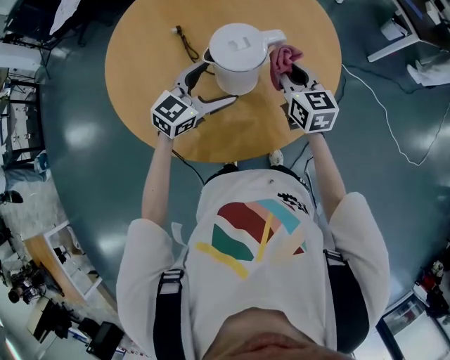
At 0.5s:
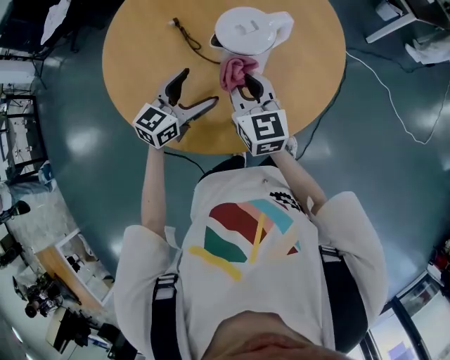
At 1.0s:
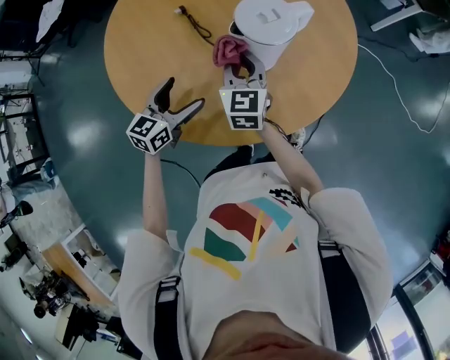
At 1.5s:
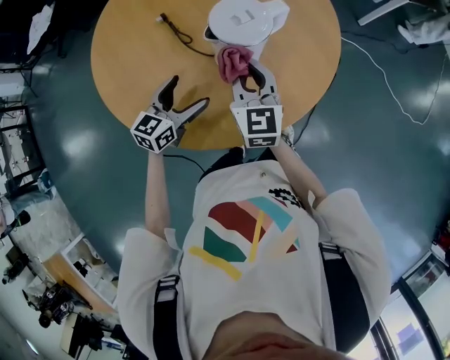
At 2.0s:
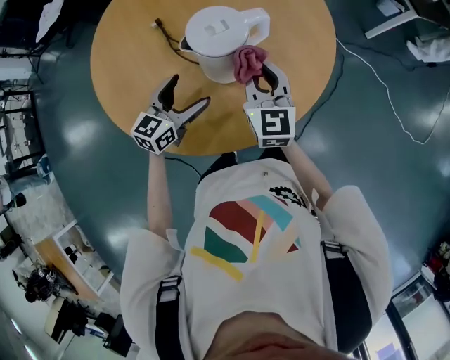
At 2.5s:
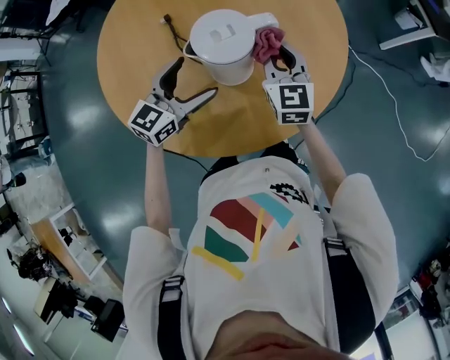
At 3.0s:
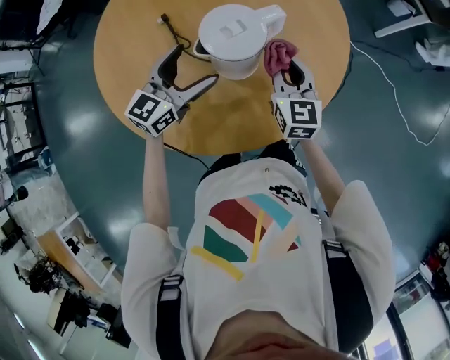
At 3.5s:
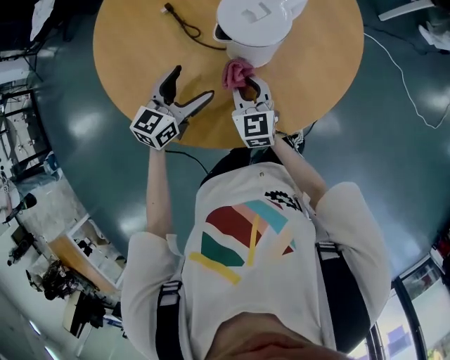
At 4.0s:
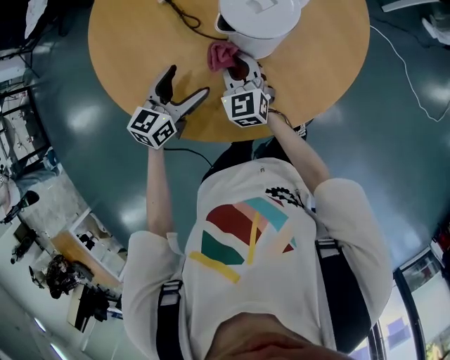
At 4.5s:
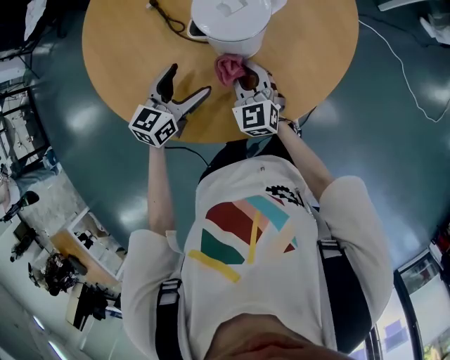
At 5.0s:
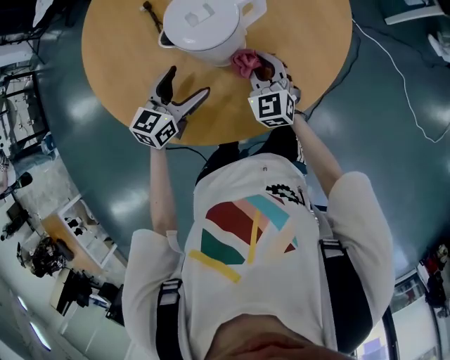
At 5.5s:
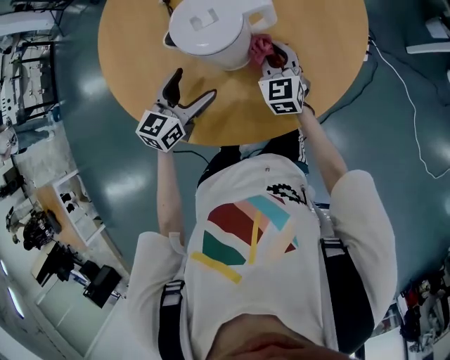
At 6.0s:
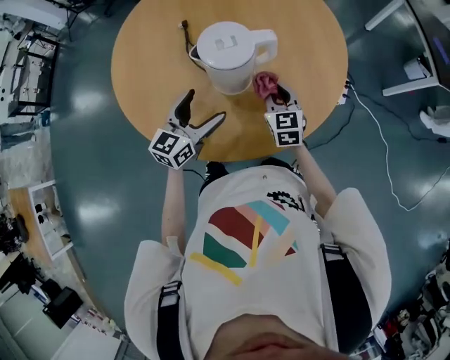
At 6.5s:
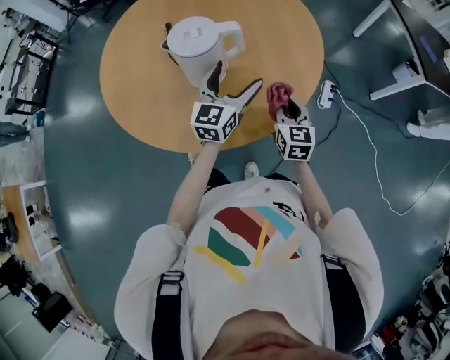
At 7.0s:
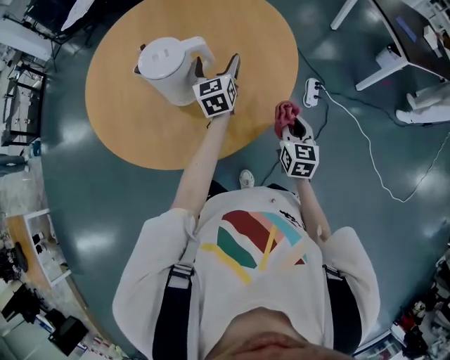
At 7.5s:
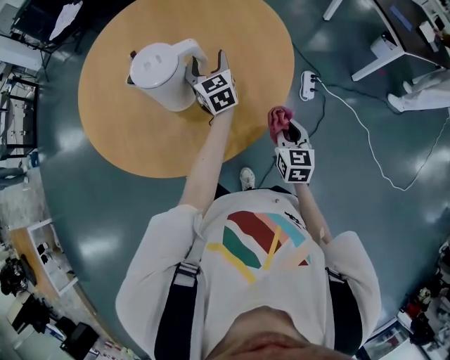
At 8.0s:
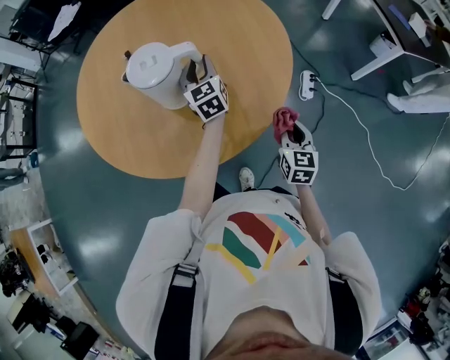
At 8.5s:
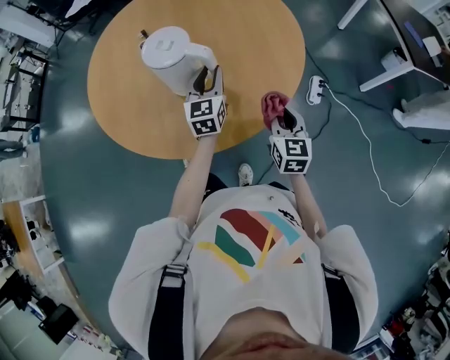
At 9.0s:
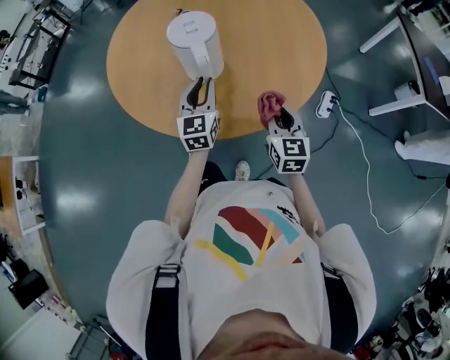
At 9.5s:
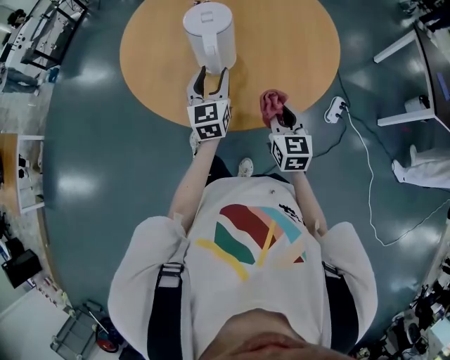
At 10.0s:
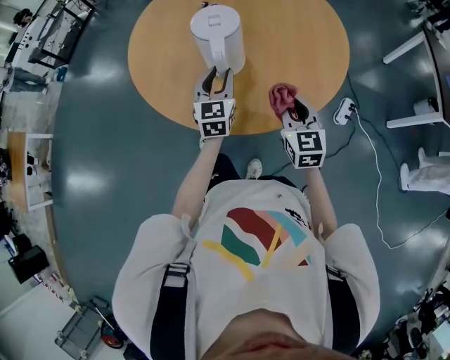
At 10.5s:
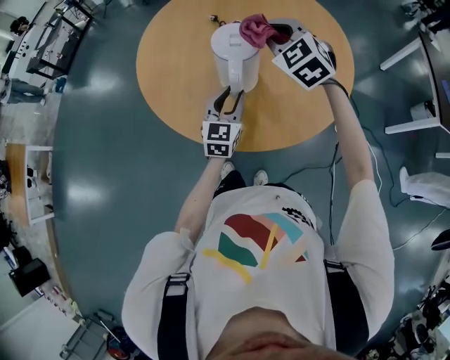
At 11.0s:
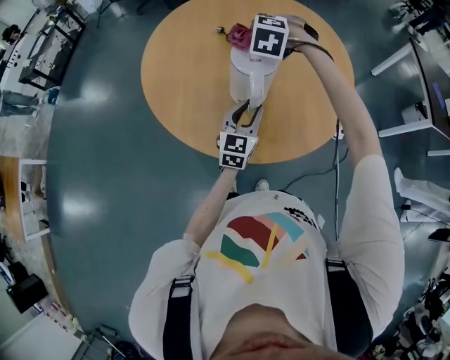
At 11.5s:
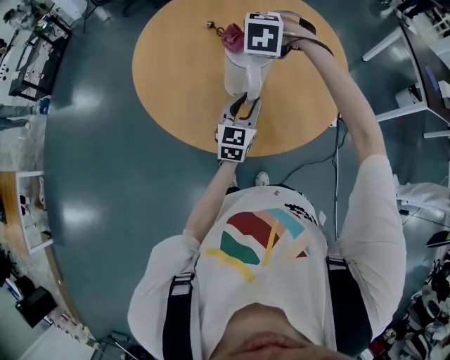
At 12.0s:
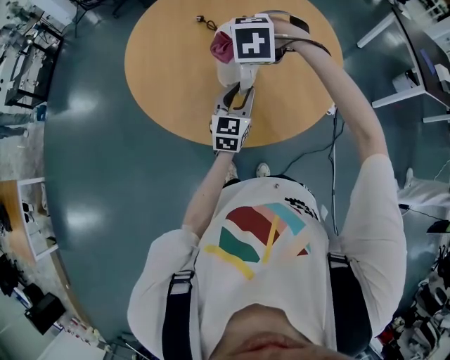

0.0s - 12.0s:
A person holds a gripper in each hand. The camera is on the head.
0.0s - 2.0s: The right gripper shifts roughly 5 cm backward, and reaches approximately 15 cm to the left, then returns, while the left gripper travels to the left and back again, approximately 15 cm each way.
2.0s - 4.0s: The left gripper is displaced to the left by some 10 cm, while the right gripper moves to the left and downward, about 20 cm.
4.0s - 6.0s: Both grippers travel together to the right, roughly 20 cm. The left gripper changes its angle by about 20 degrees.
6.0s - 8.0s: The right gripper goes some 25 cm to the right and backward, and swivels some 20 degrees; the left gripper travels to the right and forward by approximately 25 cm, rotates some 40 degrees, and closes.
8.0s - 10.0s: The right gripper heads to the left and upward, covering roughly 15 cm, and turns by approximately 30 degrees. Meanwhile the left gripper heads backward and to the left, covering some 20 cm.
10.0s - 12.0s: The left gripper changes its angle by some 20 degrees. Meanwhile the right gripper shifts about 30 cm to the left, forward and upward, and points its fingers about 50 degrees further downward.

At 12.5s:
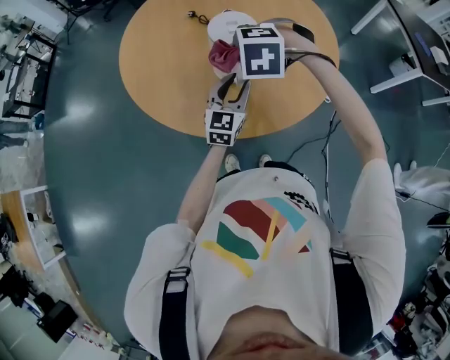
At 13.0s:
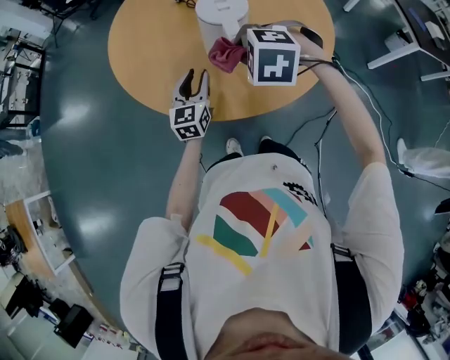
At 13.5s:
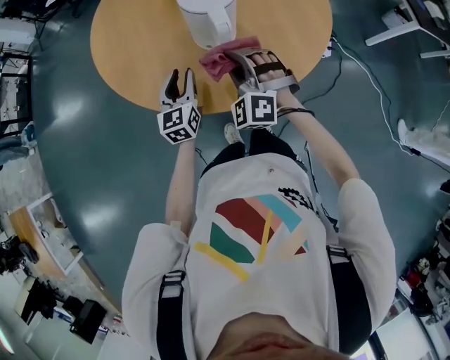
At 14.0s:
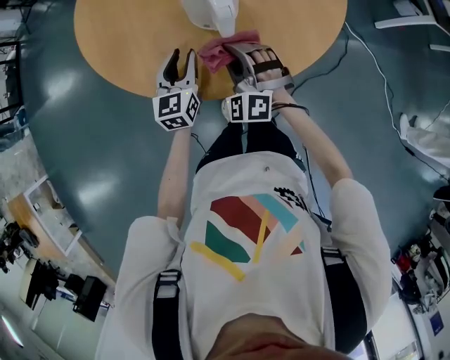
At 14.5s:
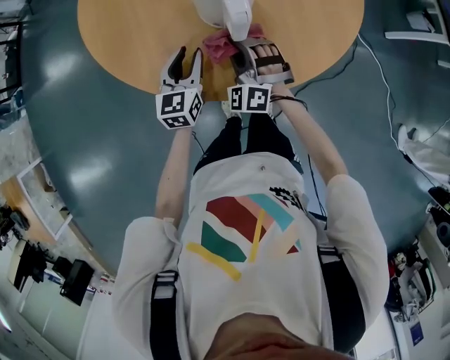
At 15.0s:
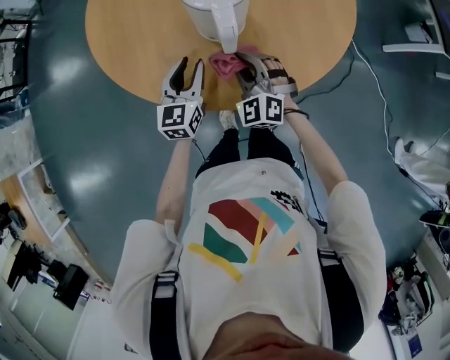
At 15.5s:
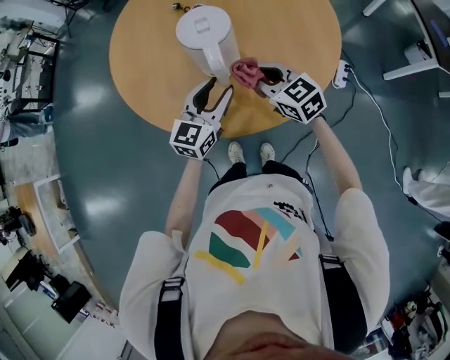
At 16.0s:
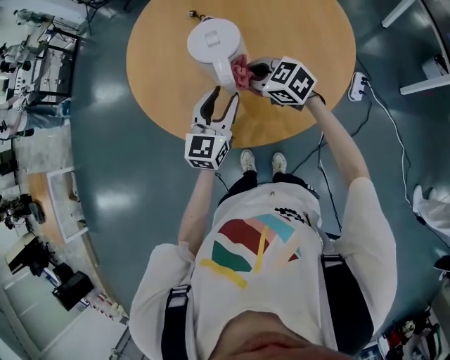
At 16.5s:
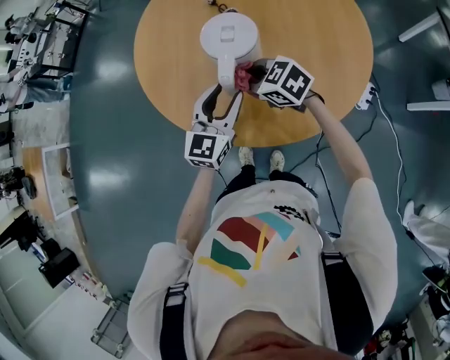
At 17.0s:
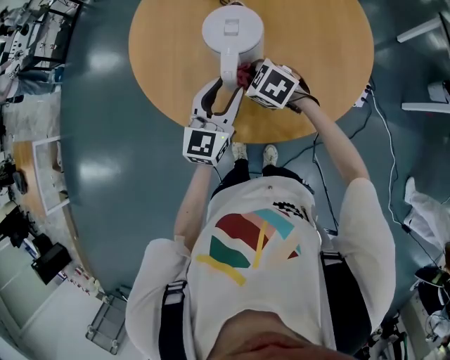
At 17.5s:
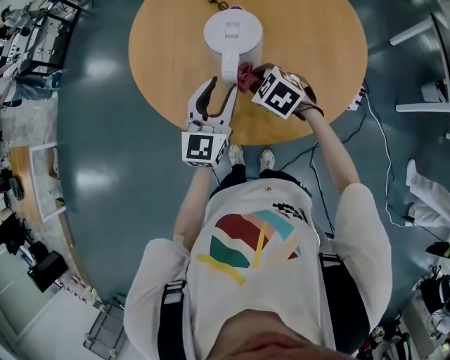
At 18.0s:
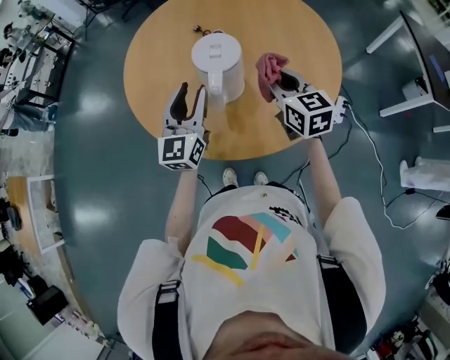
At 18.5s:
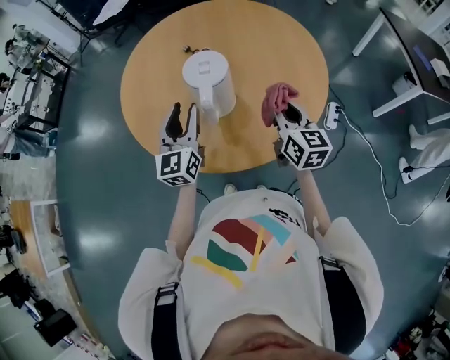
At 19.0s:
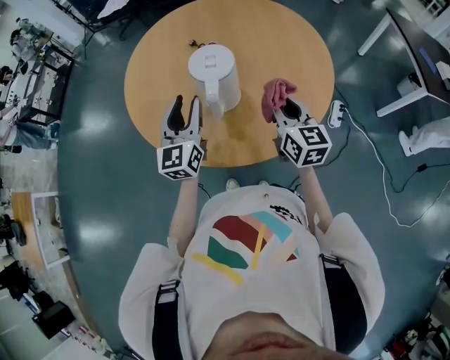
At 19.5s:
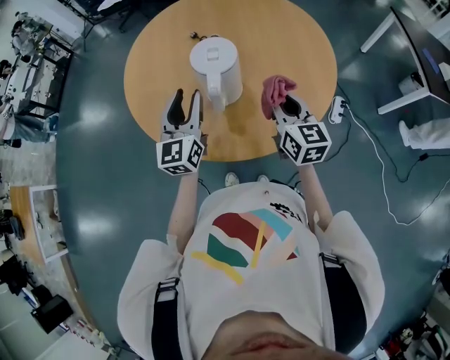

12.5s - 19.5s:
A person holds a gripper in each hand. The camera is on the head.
12.5s - 14.5s: The right gripper is displaced downward by some 20 cm, and points its fingers approximately 40 degrees further upward. The left gripper shifts about 15 cm downward and to the left.
14.5s - 16.0s: The left gripper moves some 20 cm, while the right gripper shifts about 10 cm upward, and swivels some 70 degrees.
16.0s - 17.5s: The left gripper moves approximately 5 cm. Meanwhile the right gripper shifts by roughly 5 cm, and rotates about 30 degrees.
17.5s - 19.5s: The right gripper shifts some 20 cm upward, to the right and backward, and angles its fingers upward, by some 40 degrees. The left gripper moves upward, roughly 5 cm.

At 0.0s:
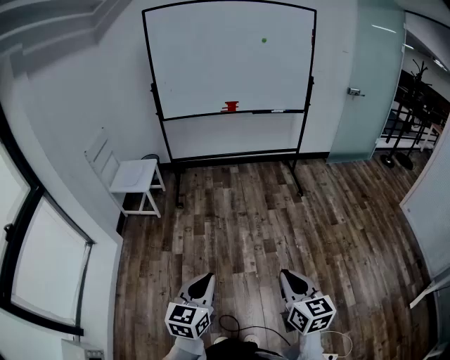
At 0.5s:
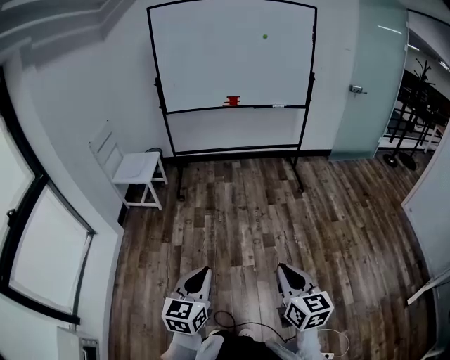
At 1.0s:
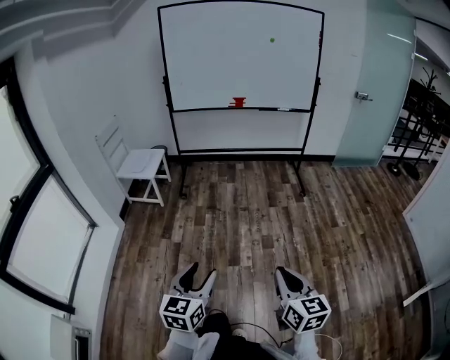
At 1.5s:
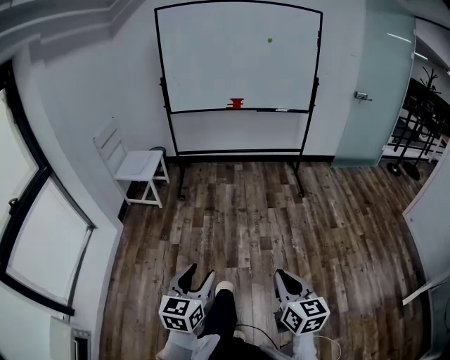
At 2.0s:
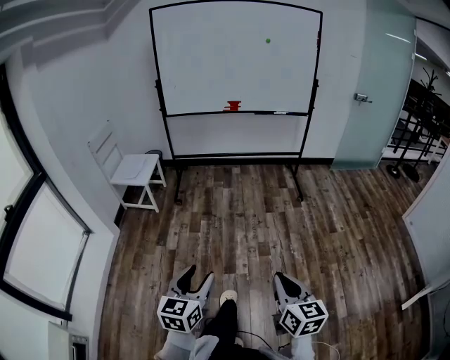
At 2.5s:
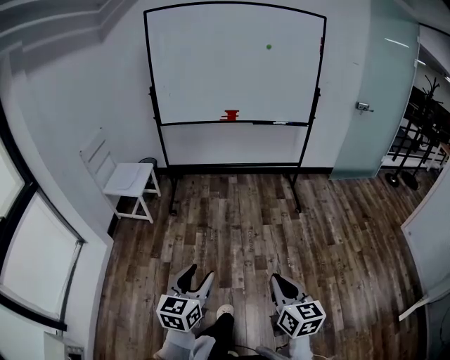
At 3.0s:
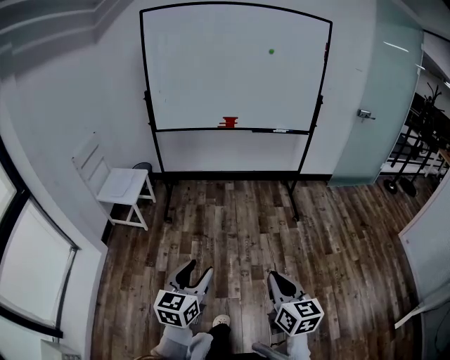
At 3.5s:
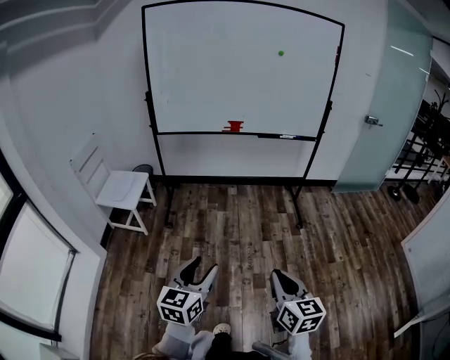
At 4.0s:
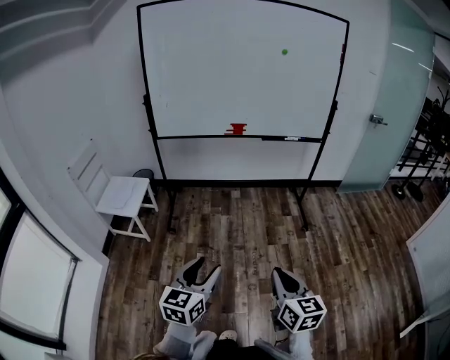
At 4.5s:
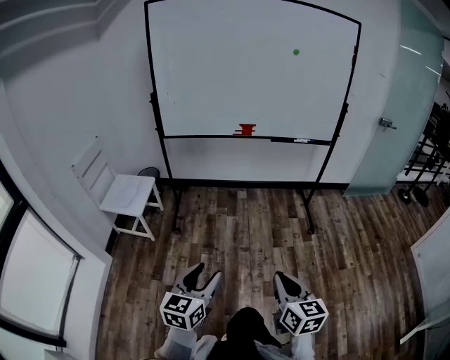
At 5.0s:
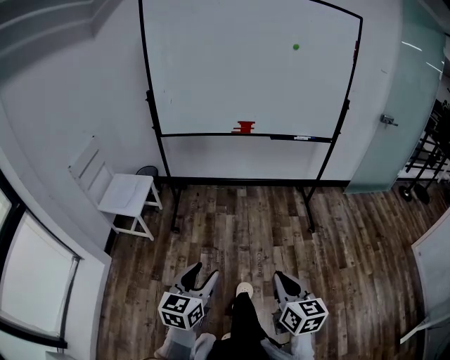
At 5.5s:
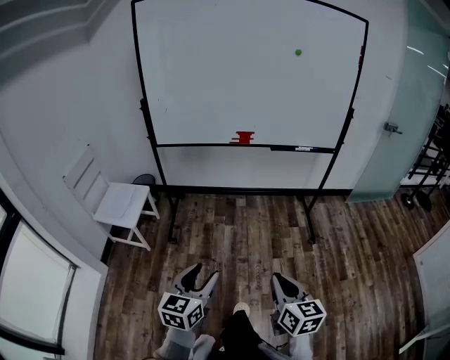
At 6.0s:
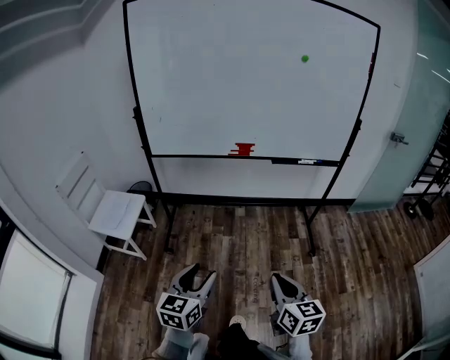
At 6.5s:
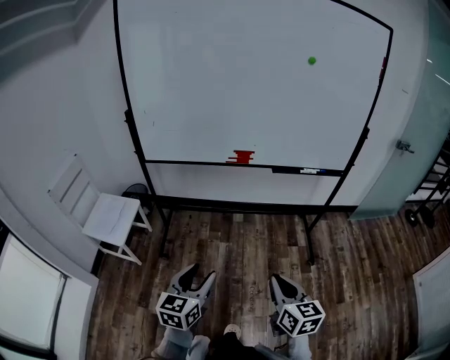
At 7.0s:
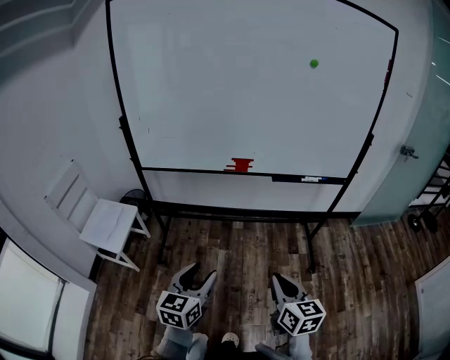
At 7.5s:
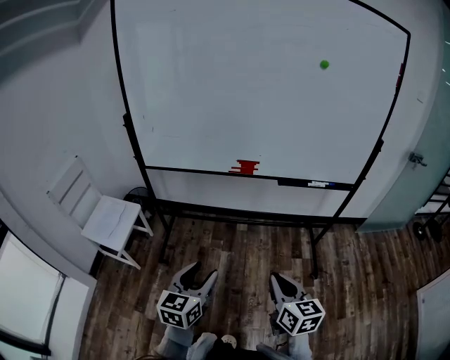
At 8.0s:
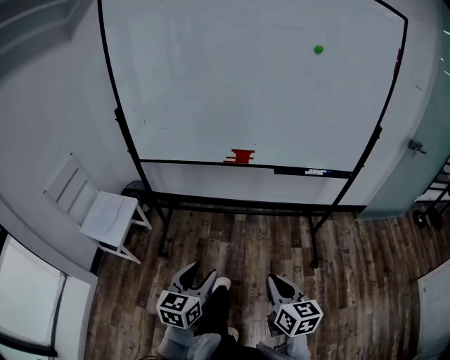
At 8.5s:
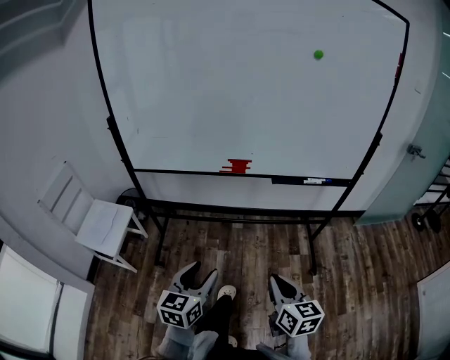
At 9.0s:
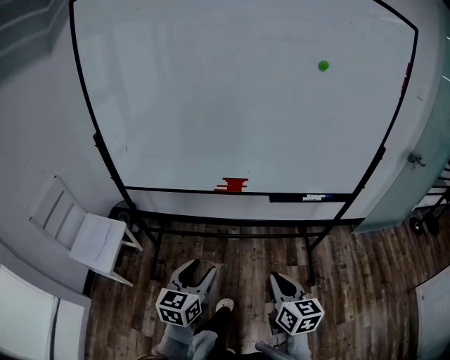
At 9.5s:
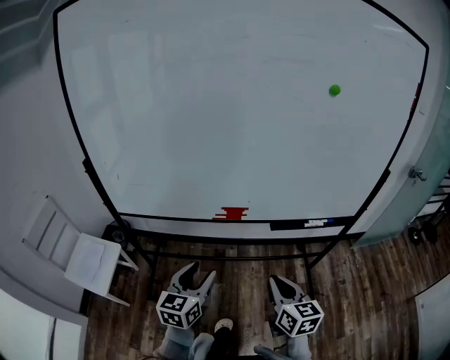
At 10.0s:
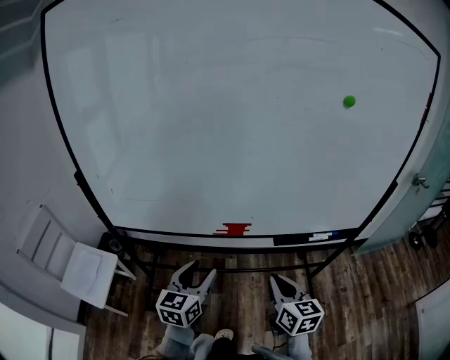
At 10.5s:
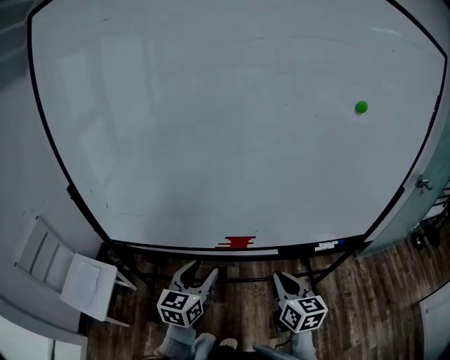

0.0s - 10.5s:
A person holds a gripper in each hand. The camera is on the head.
0.0s - 2.0s: Both grippers travel together to the right, approximately 5 cm. The left gripper opens up.
2.0s - 4.0s: The grippers both shift forward by approximately 35 cm.
4.0s - 6.5s: The two grippers go roughly 30 cm forward.
6.5s - 8.5s: The two grippers go some 10 cm forward.
8.5s - 10.5s: Both grippers move forward, some 35 cm.
